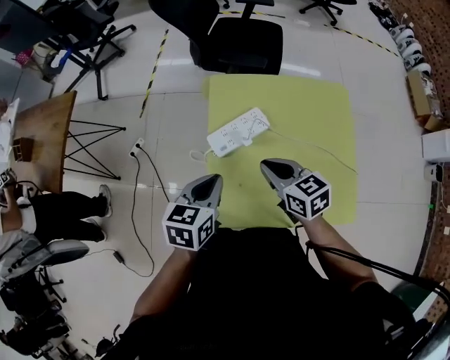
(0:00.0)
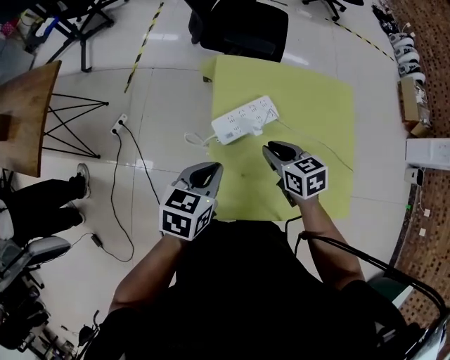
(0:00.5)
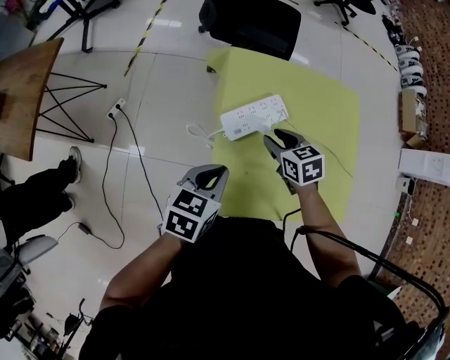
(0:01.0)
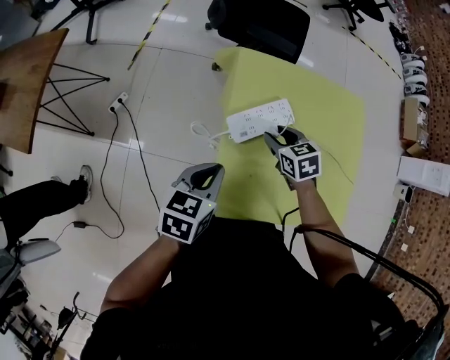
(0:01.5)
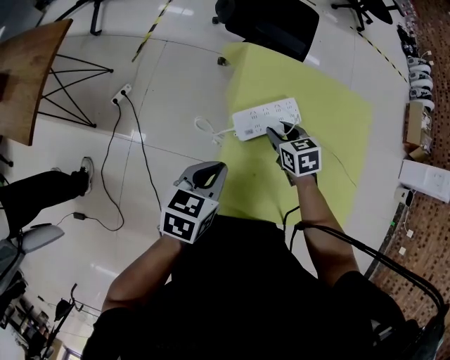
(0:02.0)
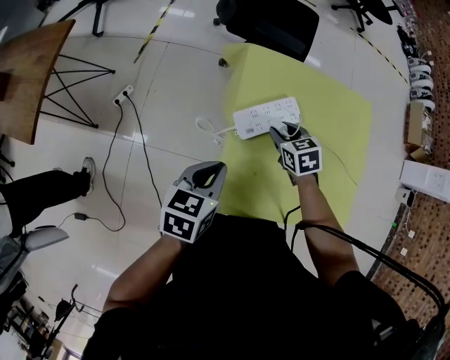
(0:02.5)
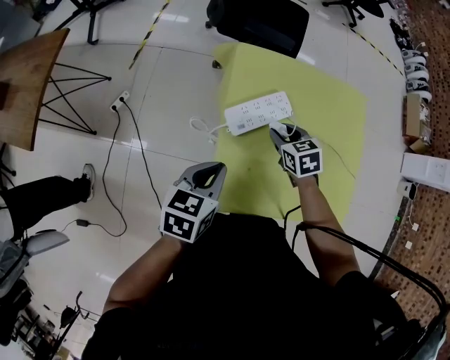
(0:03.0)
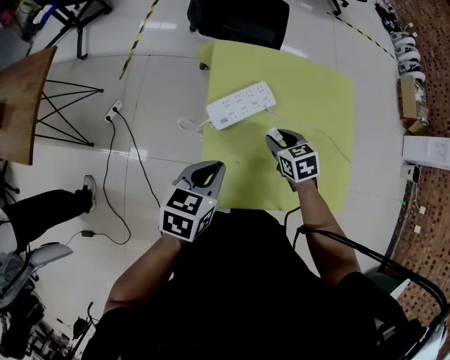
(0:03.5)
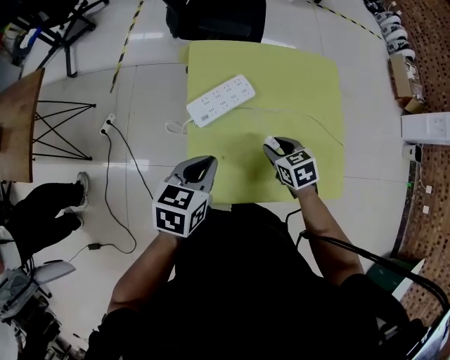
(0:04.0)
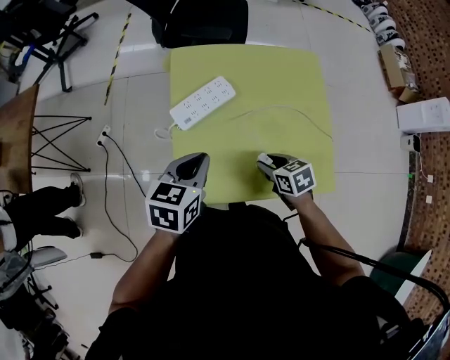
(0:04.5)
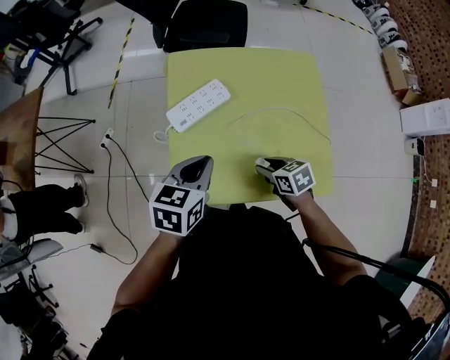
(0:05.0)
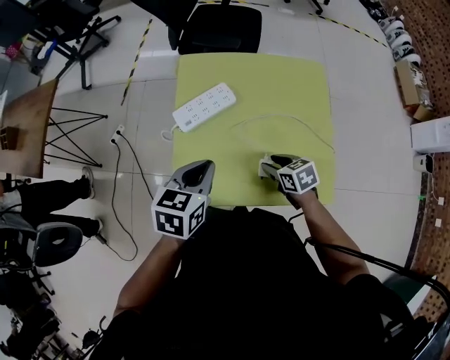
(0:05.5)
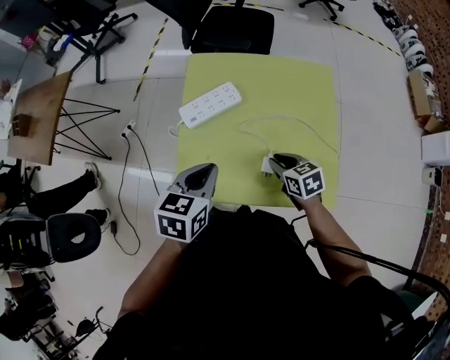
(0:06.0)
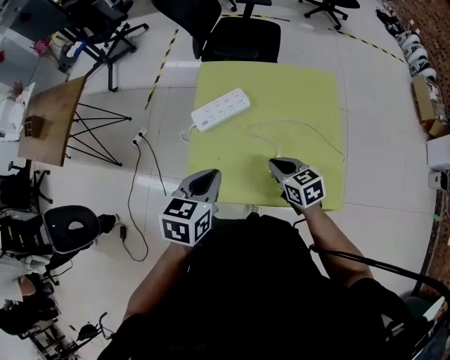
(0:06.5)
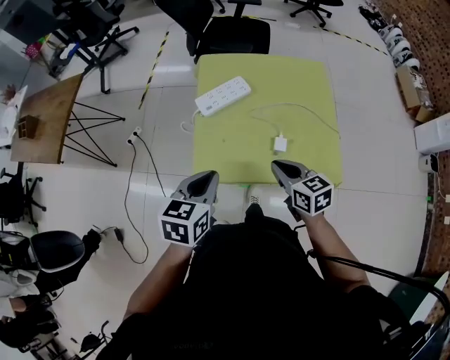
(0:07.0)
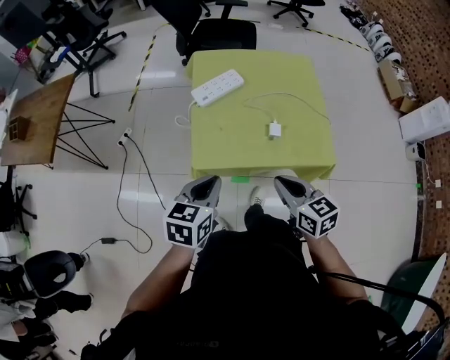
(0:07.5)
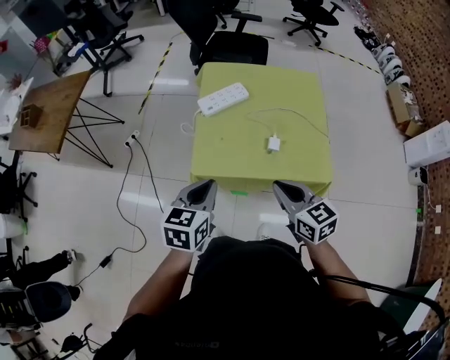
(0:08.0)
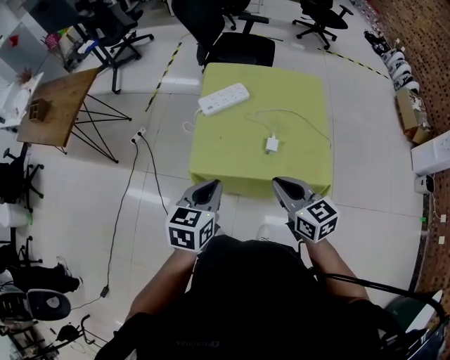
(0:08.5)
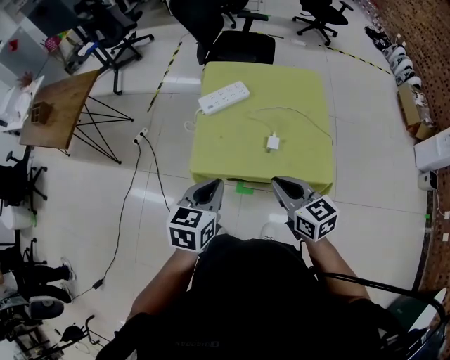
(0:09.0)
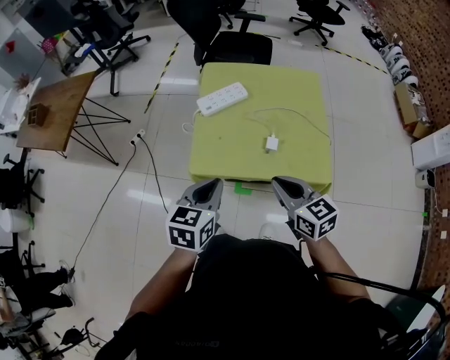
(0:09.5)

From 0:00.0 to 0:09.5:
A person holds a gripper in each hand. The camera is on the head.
From 0:00.0 to 0:02.0: The right gripper is displaced downward and forward by approximately 15 cm, turns by some 30 degrees, and opens its fingers, while the left gripper travels to the left and downward by some 10 cm.
From 0:02.0 to 0:04.0: The left gripper is displaced to the right by about 10 cm. Meanwhile the right gripper moves to the right and backward, about 15 cm.
From 0:04.0 to 0:05.5: The left gripper is displaced to the right by roughly 5 cm. Meanwhile the right gripper moves to the right and backward, about 10 cm.
From 0:05.5 to 0:07.5: The right gripper goes approximately 25 cm backward, upward and to the left, swivels approximately 30 degrees, and closes its fingers. Meanwhile the left gripper goes about 20 cm backward and to the left.
From 0:07.5 to 0:09.5: The left gripper shifts by about 5 cm.

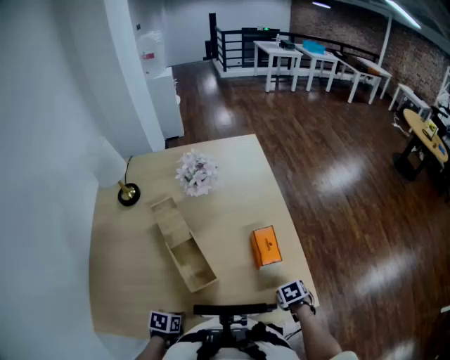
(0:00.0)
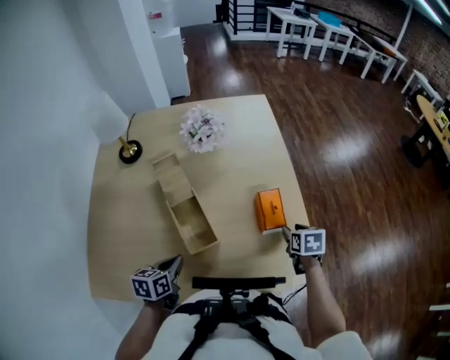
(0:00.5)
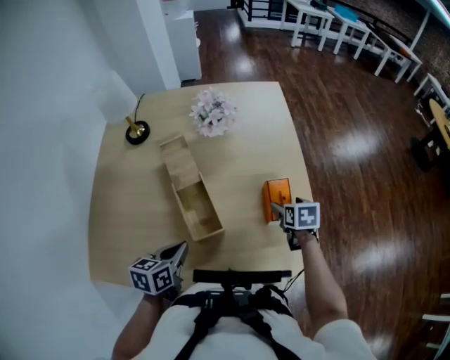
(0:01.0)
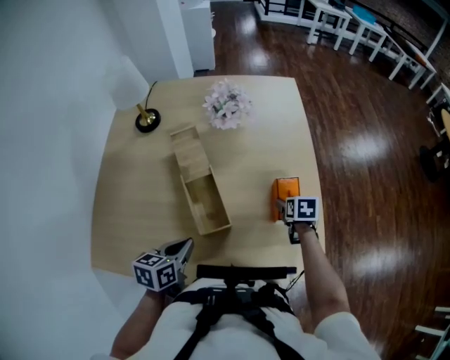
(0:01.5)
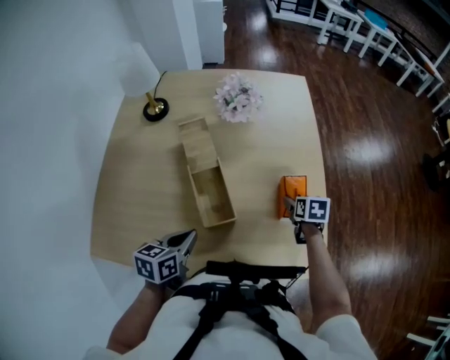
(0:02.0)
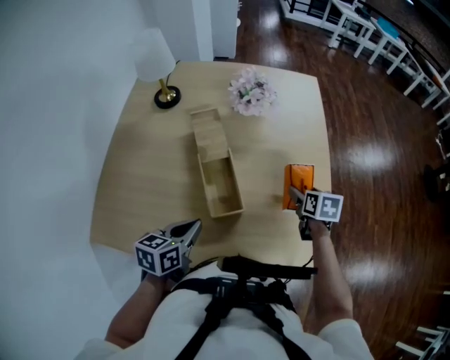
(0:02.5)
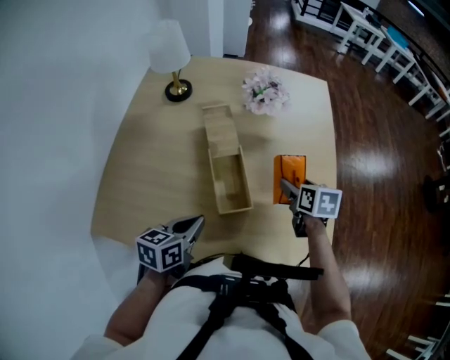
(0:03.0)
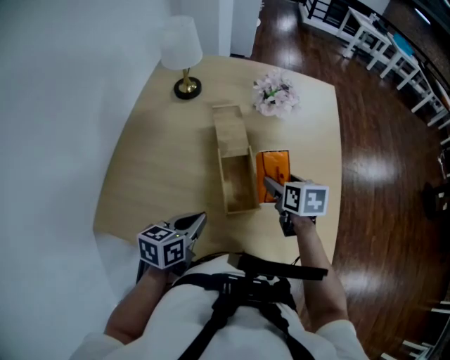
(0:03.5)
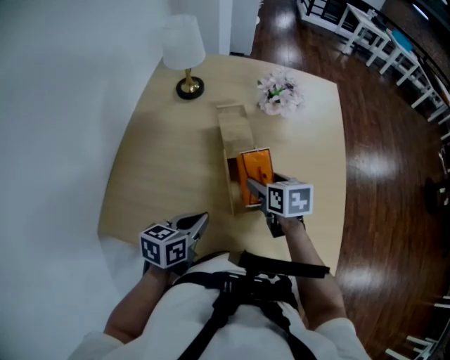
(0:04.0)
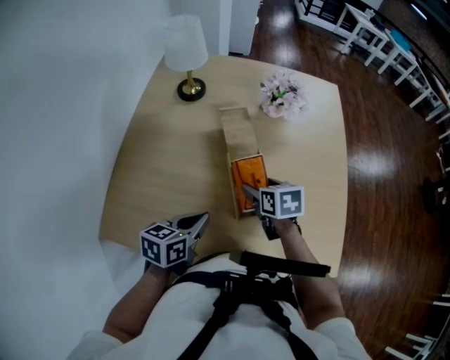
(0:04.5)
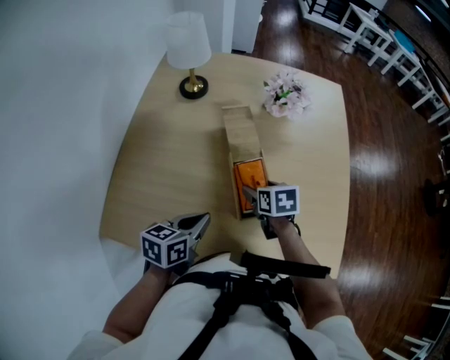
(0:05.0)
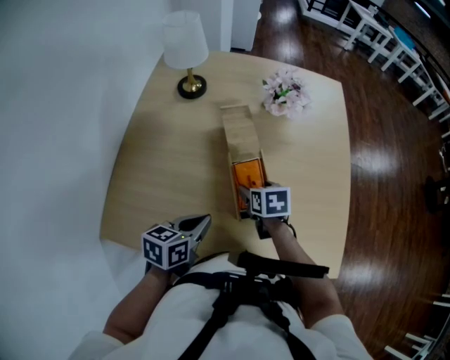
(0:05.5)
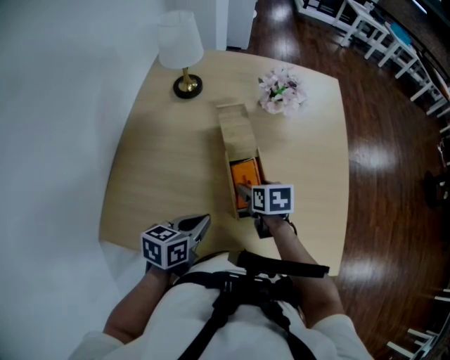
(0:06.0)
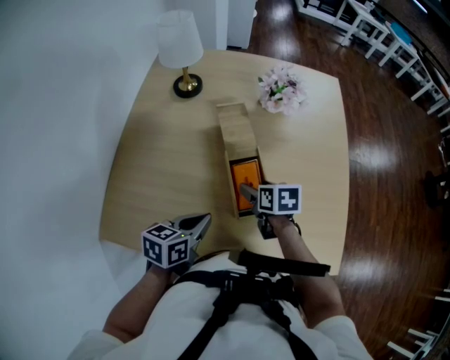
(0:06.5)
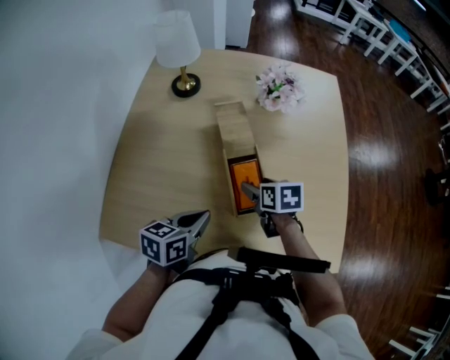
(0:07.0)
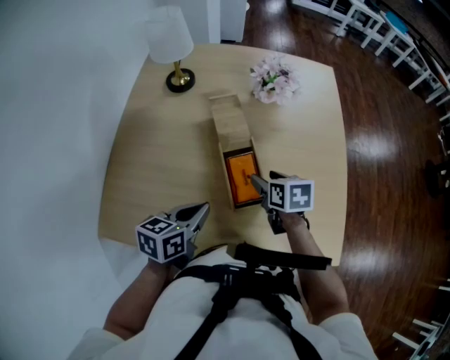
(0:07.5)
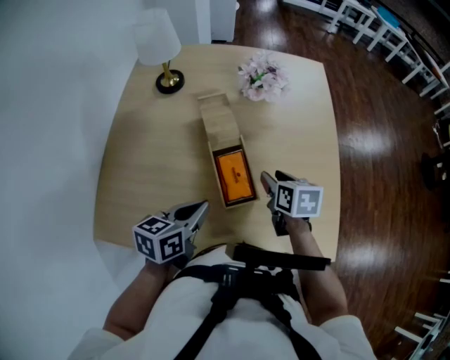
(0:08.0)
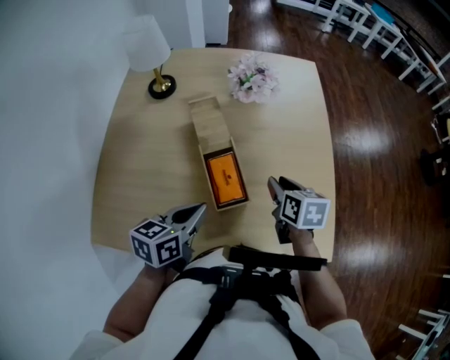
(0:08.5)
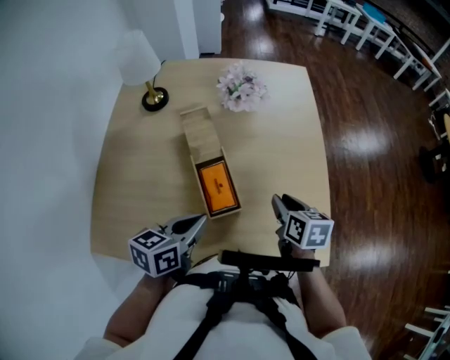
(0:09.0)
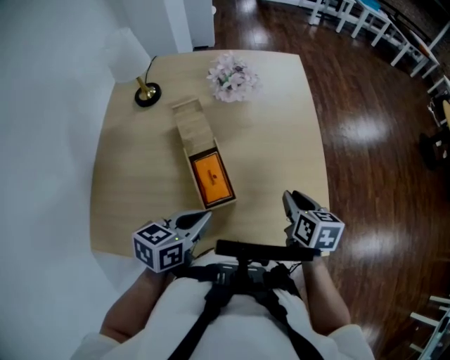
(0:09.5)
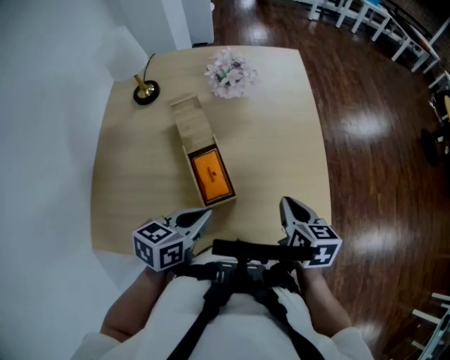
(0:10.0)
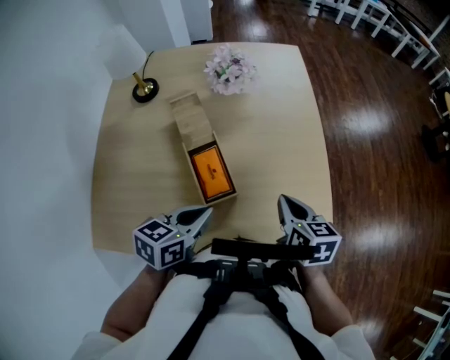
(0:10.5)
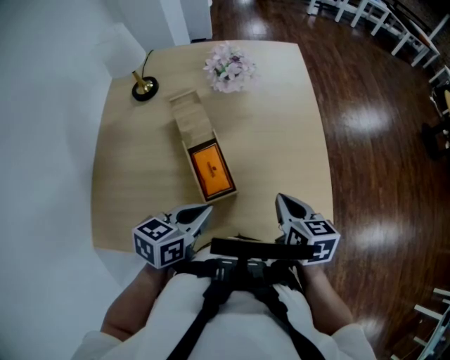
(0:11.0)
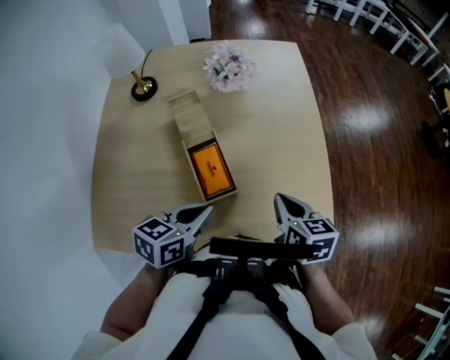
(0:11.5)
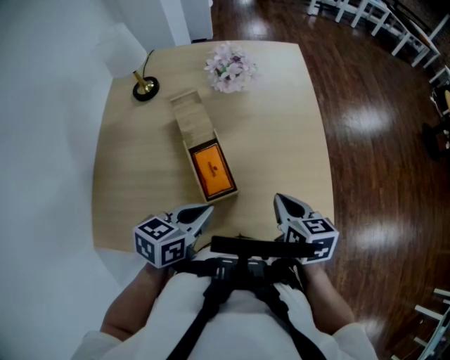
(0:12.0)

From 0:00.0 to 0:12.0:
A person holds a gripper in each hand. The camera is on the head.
From 0:00.0 to 0:02.0: The right gripper moves approximately 20 cm, swivels some 20 degrees, and opens its fingers, while the left gripper moves upward, roughly 15 cm, and swivels approximately 30 degrees.
From 0:02.0 to 0:04.0: The right gripper travels to the left and upward by some 30 cm, and changes its angle by approximately 20 degrees; the left gripper goes some 5 cm to the left.
From 0:04.0 to 0:06.0: The right gripper moves downward, about 5 cm.
From 0:06.0 to 0:08.0: The right gripper moves to the right and upward, about 10 cm, and closes its fingers. The left gripper ends up about 5 cm from where it was.
From 0:08.0 to 0:10.0: The left gripper is displaced to the right by approximately 10 cm. The right gripper is displaced to the right and backward by about 15 cm, and closes its fingers.
From 0:10.0 to 0:12.0: The grippers move only a little.

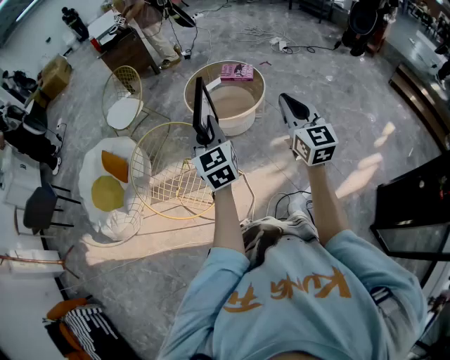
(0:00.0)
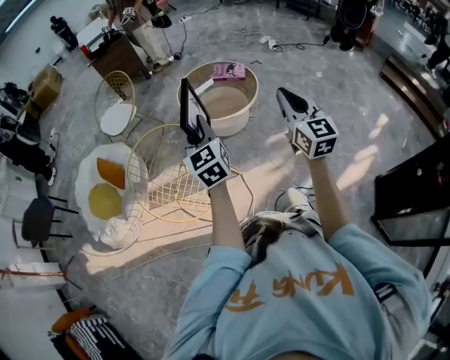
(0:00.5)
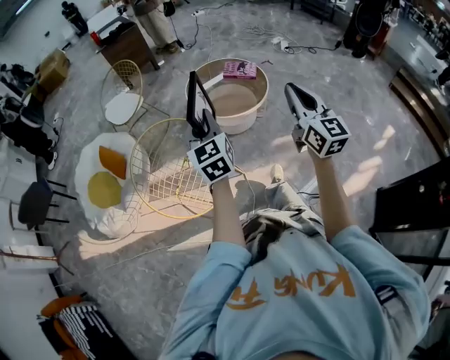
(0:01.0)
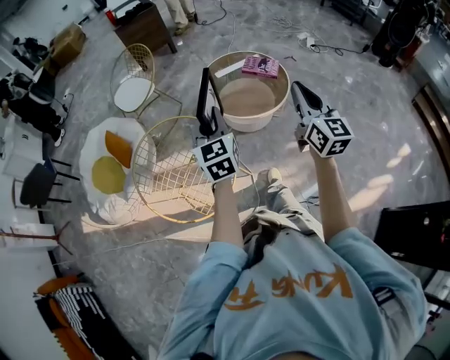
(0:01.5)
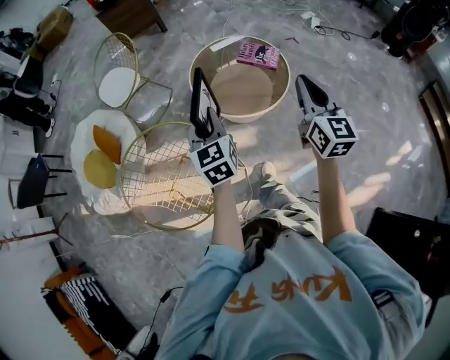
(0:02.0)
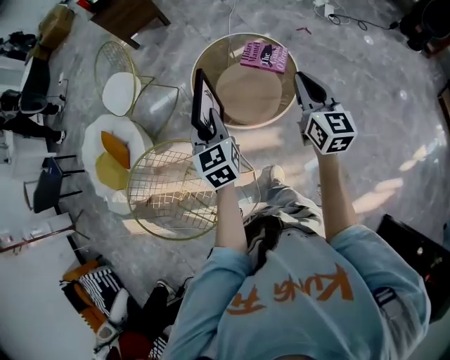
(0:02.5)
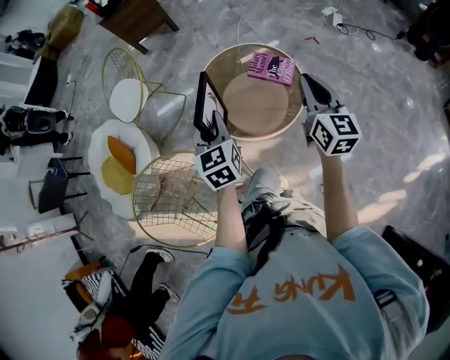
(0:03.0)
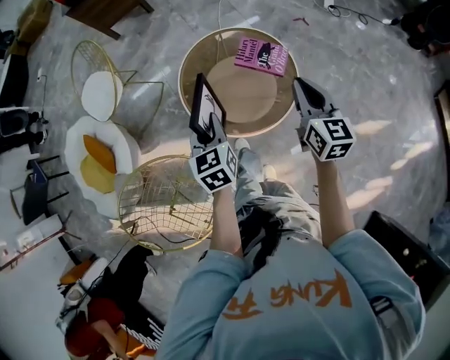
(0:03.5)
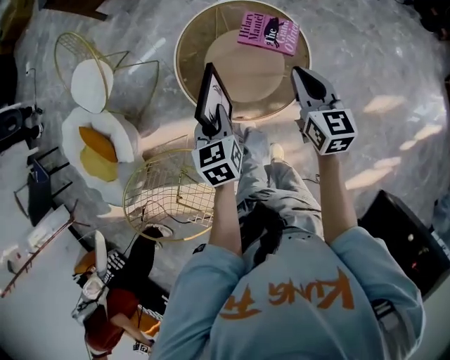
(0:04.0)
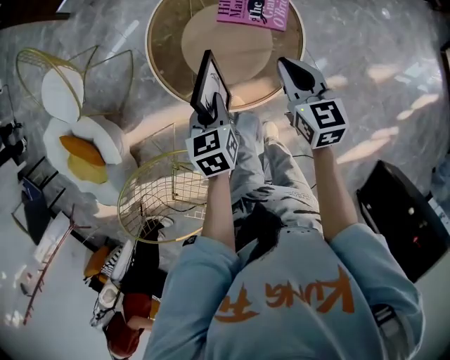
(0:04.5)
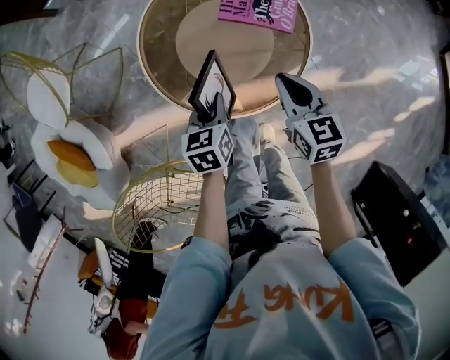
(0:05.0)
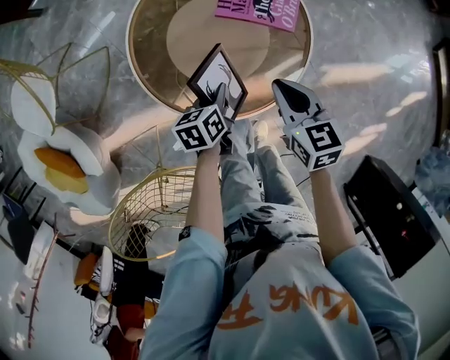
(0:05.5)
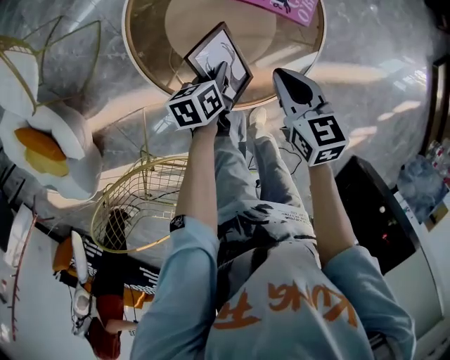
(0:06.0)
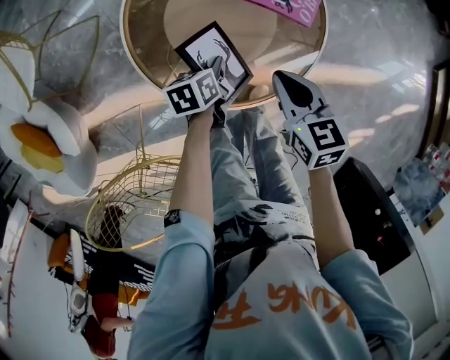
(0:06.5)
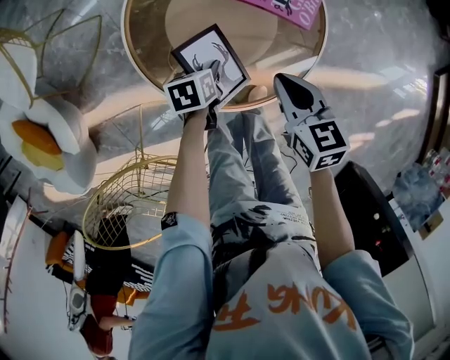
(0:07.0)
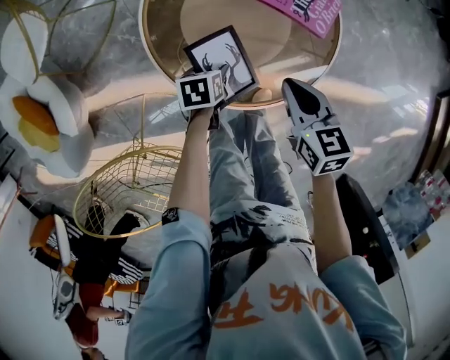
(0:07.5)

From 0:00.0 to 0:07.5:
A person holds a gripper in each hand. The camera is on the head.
From 0:00.0 to 0:02.0: Both grippers move forward, roughly 25 cm.
From 0:02.0 to 0:04.0: The grippers both shift forward and downward by about 30 cm. The right gripper rotates approximately 20 degrees. The left gripper changes its angle by roughly 30 degrees.
From 0:04.0 to 0:05.5: The two grippers go some 20 cm downward. The left gripper changes its angle by roughly 40 degrees, while the right gripper turns by some 20 degrees.
From 0:05.5 to 0:07.5: The left gripper is displaced downward and to the left by some 10 cm, and opens its fingers.
